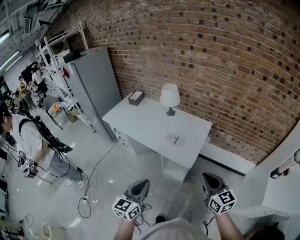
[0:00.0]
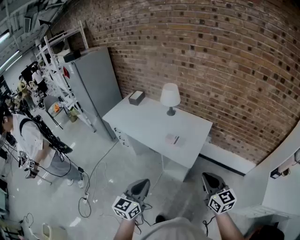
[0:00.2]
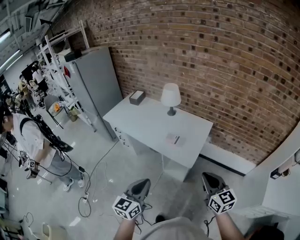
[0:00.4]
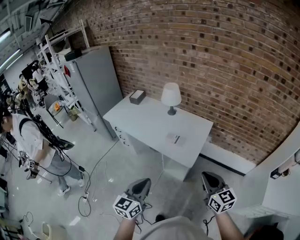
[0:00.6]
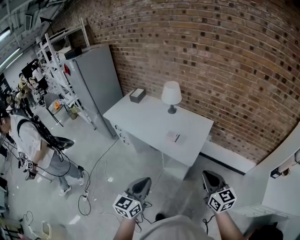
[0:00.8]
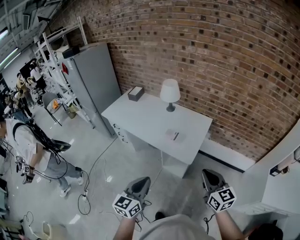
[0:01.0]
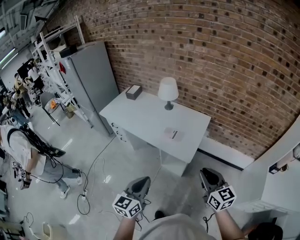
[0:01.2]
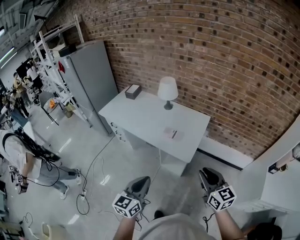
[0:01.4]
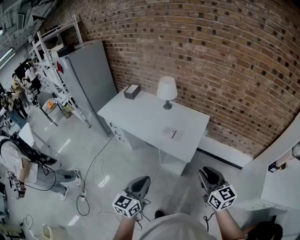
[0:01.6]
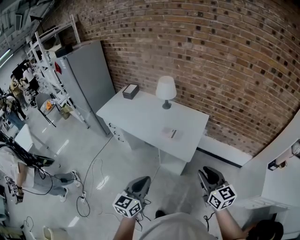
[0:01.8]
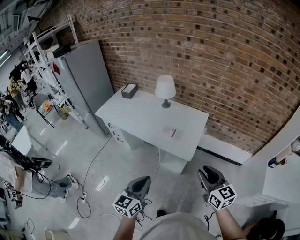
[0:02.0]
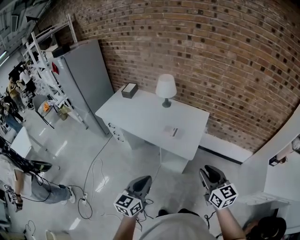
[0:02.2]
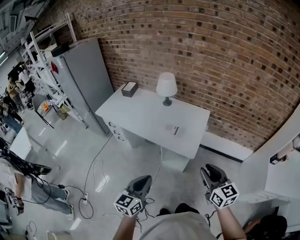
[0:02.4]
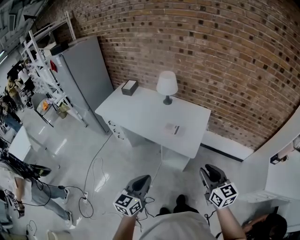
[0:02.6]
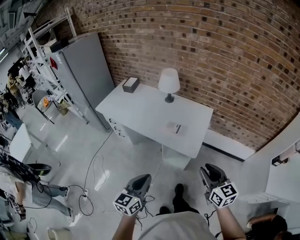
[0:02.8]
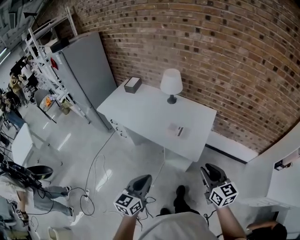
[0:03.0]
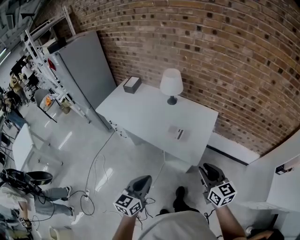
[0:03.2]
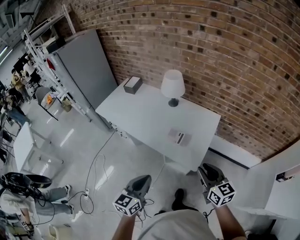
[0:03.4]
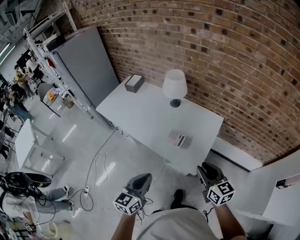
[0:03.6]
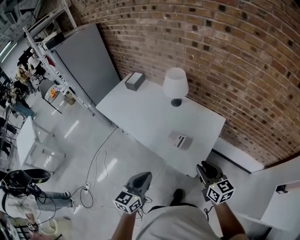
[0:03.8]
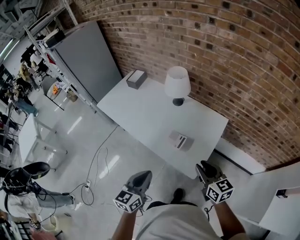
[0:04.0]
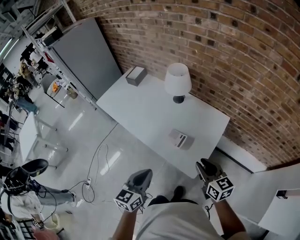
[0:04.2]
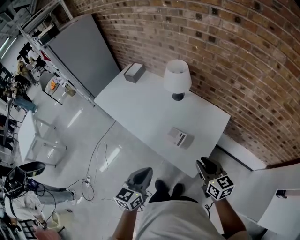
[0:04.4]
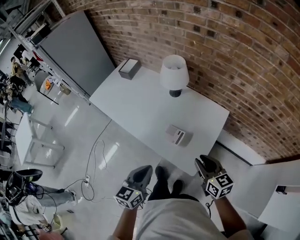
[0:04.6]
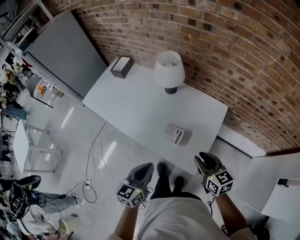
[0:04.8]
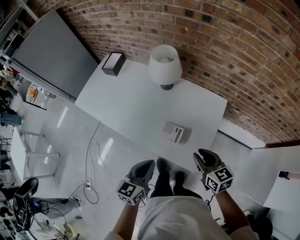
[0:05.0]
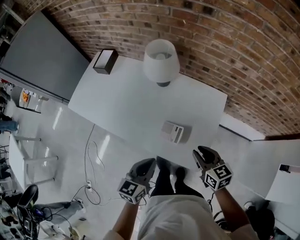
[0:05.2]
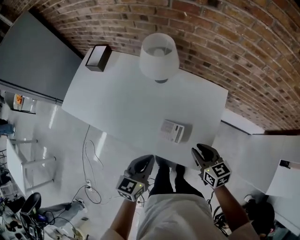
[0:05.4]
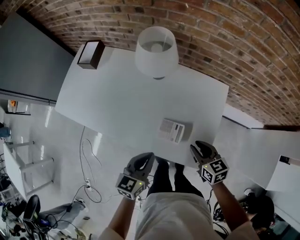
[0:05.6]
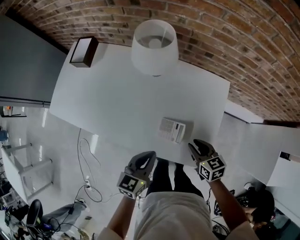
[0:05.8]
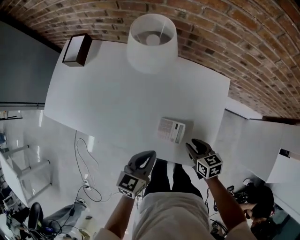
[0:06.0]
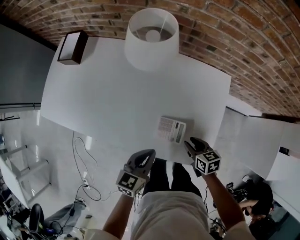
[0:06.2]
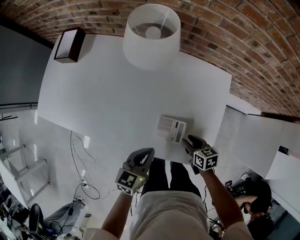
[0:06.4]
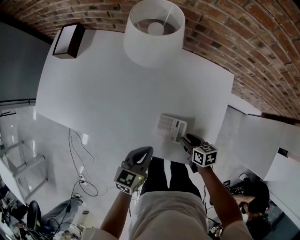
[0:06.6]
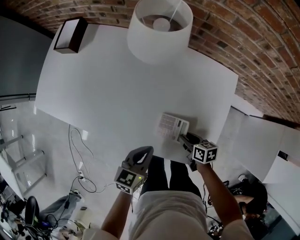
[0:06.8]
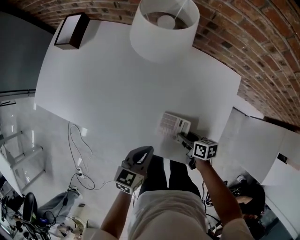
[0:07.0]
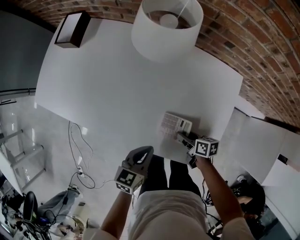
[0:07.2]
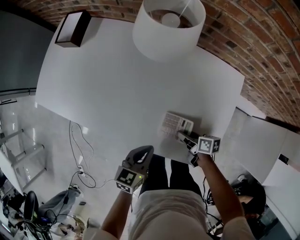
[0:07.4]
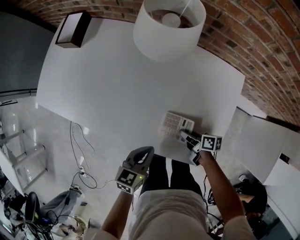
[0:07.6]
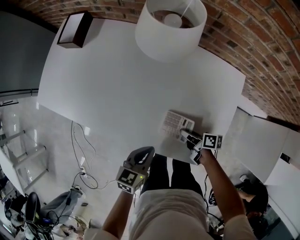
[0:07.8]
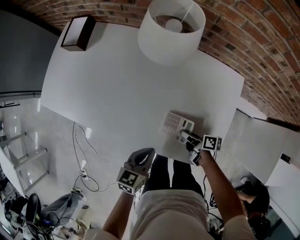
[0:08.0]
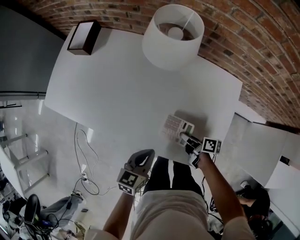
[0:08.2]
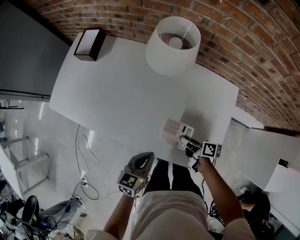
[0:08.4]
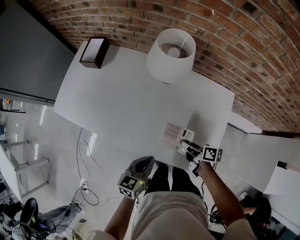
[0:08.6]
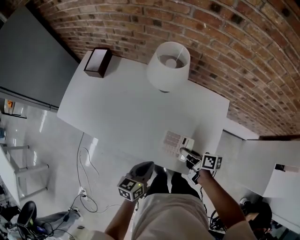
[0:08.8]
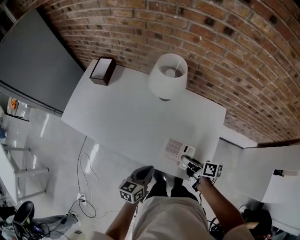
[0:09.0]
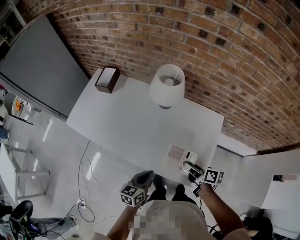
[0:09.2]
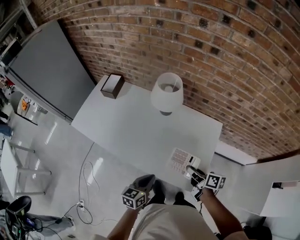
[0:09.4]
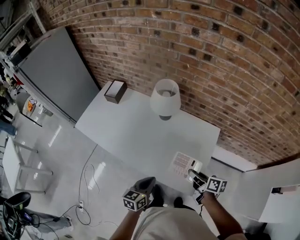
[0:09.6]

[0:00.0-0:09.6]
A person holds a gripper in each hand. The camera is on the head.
0:00.0 to 0:01.6: The right gripper opens up.
0:01.6 to 0:03.2: The right gripper is displaced forward and downward by roughly 15 cm. Meanwhile the left gripper travels forward by roughly 10 cm.
0:03.2 to 0:04.8: Both grippers move forward, about 25 cm.
0:04.8 to 0:06.4: The left gripper shifts approximately 25 cm downward and forward, and changes its angle by roughly 30 degrees. Meanwhile the right gripper goes approximately 30 cm downward, and rotates about 40 degrees.
0:06.4 to 0:08.0: The right gripper travels downward by about 5 cm, and rotates about 40 degrees.
0:08.0 to 0:09.6: The left gripper travels upward and backward by about 20 cm, while the right gripper shifts about 30 cm upward, and rotates approximately 20 degrees.

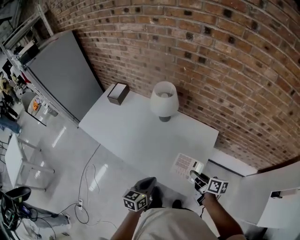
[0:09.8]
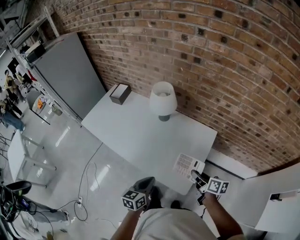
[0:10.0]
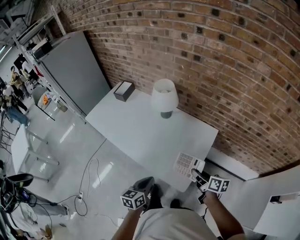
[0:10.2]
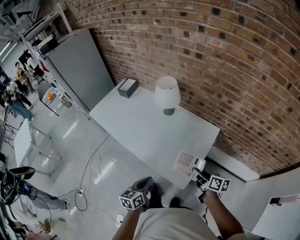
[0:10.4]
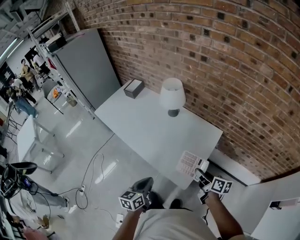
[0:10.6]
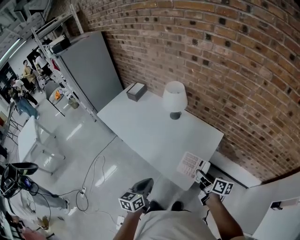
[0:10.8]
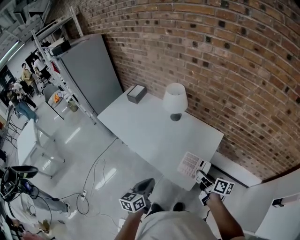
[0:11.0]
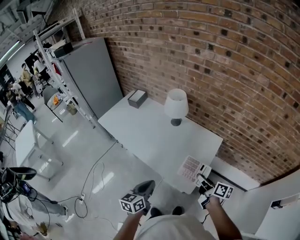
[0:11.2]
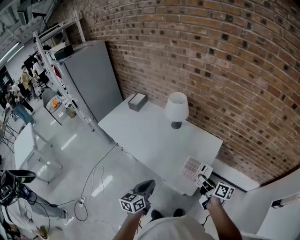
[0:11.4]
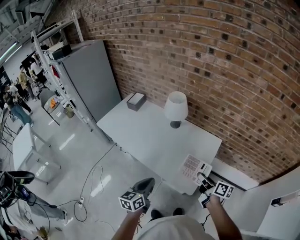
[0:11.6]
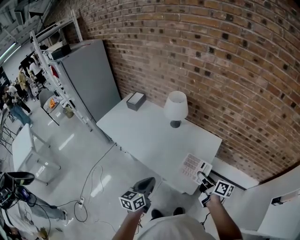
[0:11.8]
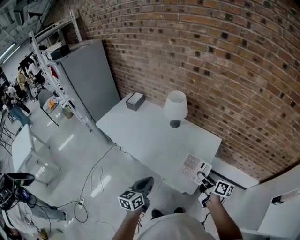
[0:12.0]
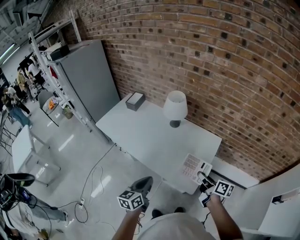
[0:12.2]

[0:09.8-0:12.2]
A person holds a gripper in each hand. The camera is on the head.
0:09.8 to 0:11.0: The right gripper goes roughly 10 cm backward; the left gripper shifts approximately 15 cm backward and upward.
0:11.0 to 0:12.2: The left gripper moves to the left, approximately 5 cm.

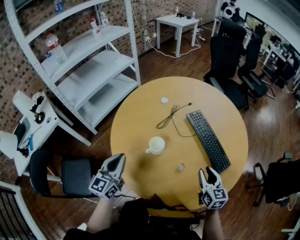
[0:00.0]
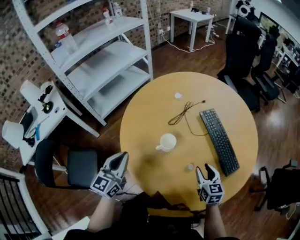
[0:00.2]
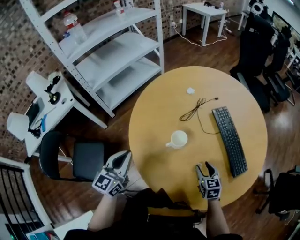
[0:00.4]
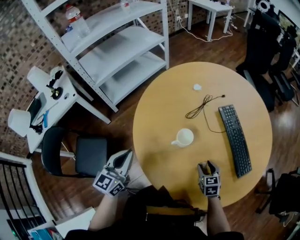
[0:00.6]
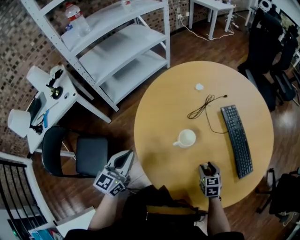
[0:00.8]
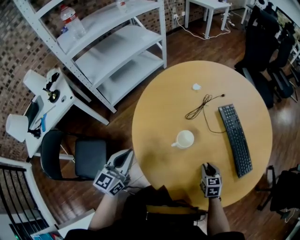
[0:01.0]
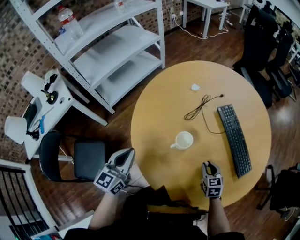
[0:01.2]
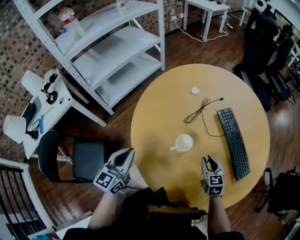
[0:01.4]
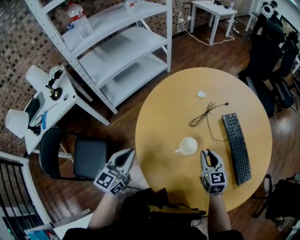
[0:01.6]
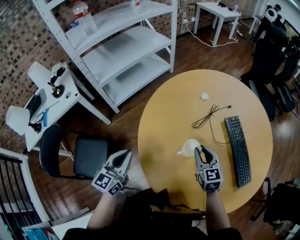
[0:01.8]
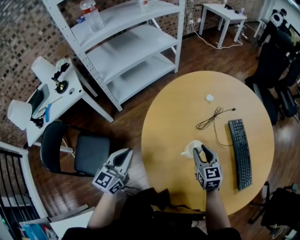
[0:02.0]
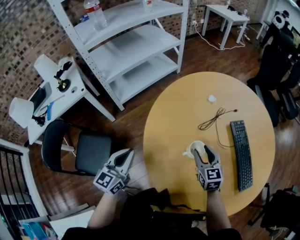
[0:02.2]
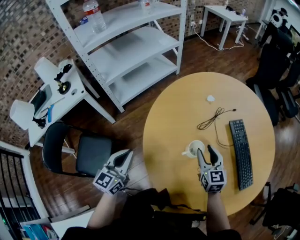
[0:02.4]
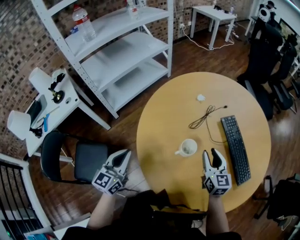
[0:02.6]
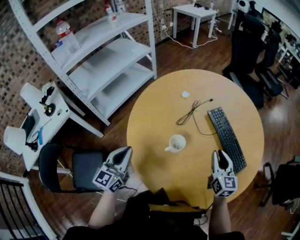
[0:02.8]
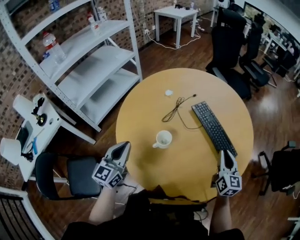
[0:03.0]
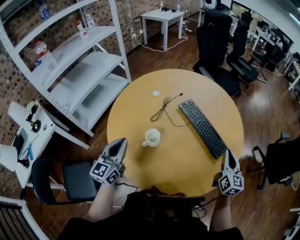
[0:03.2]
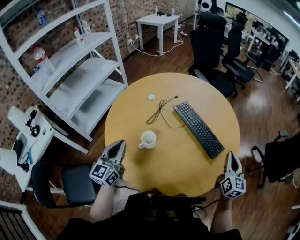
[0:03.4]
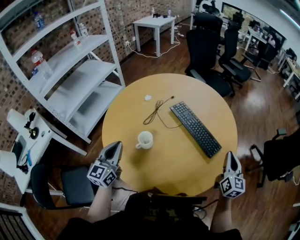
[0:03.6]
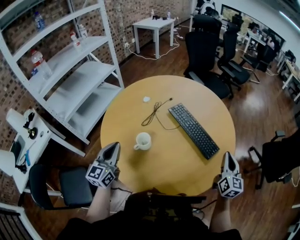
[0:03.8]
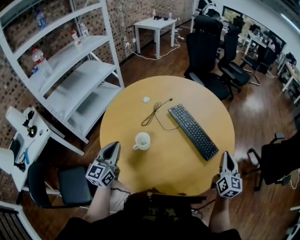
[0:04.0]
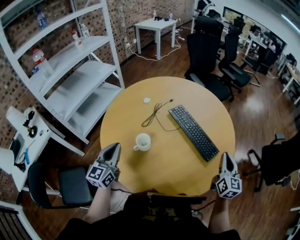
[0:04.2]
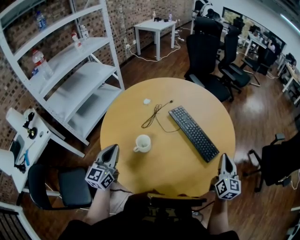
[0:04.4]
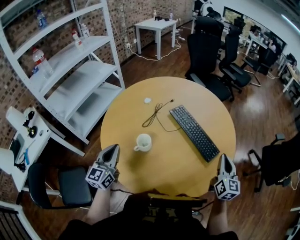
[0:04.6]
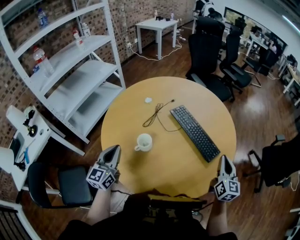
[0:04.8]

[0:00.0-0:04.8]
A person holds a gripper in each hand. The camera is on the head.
0:00.0 to 0:01.6: The left gripper is displaced to the left by some 10 cm; the right gripper is displaced to the left and forward by about 20 cm, and moves roughly 15 cm downward and comes back.
0:01.6 to 0:03.2: The left gripper moves about 15 cm, while the right gripper ends up roughly 30 cm from where it was, turns by approximately 40 degrees, and opens and closes again.
0:03.2 to 0:04.8: There are only small adjustments of the grippers.

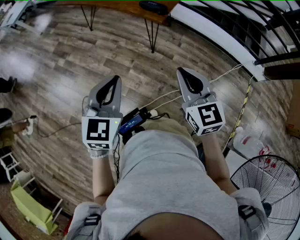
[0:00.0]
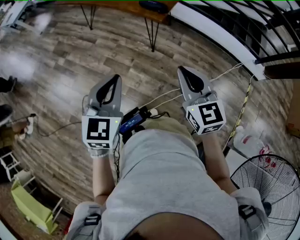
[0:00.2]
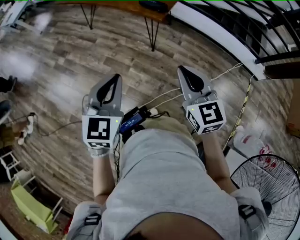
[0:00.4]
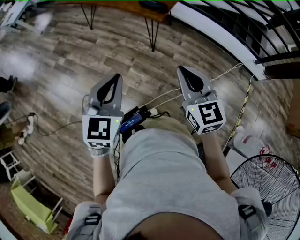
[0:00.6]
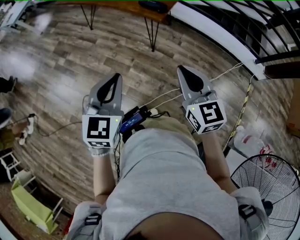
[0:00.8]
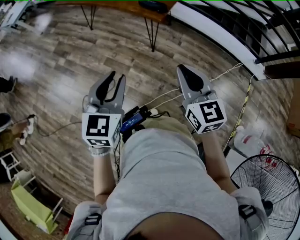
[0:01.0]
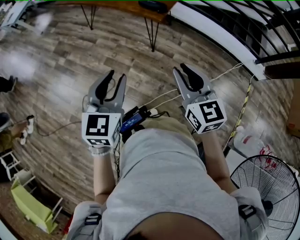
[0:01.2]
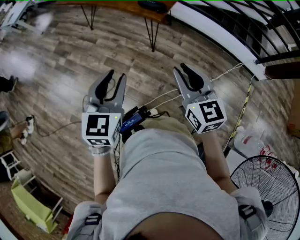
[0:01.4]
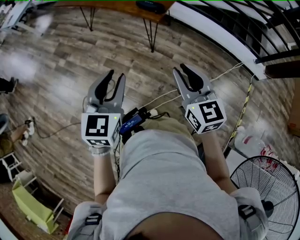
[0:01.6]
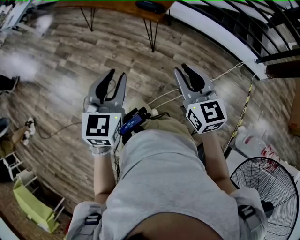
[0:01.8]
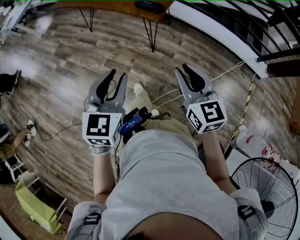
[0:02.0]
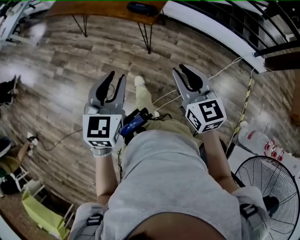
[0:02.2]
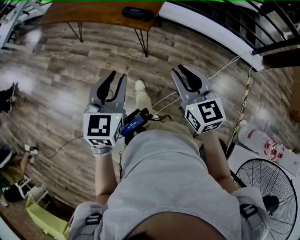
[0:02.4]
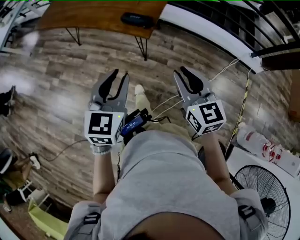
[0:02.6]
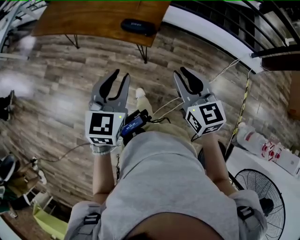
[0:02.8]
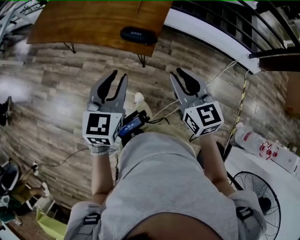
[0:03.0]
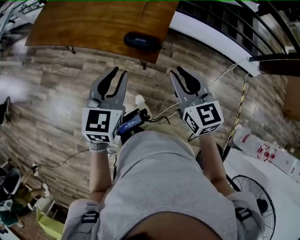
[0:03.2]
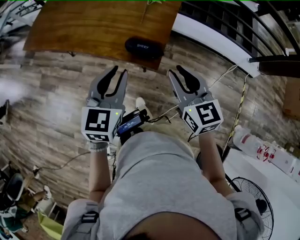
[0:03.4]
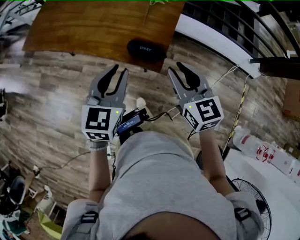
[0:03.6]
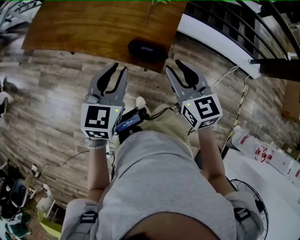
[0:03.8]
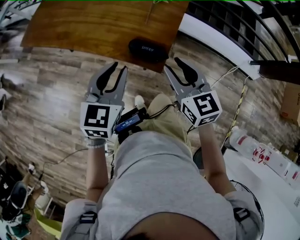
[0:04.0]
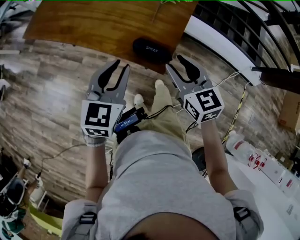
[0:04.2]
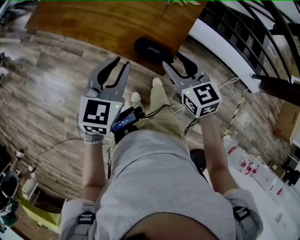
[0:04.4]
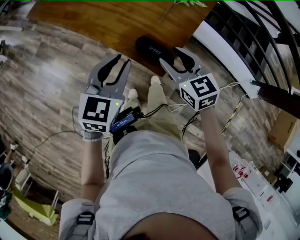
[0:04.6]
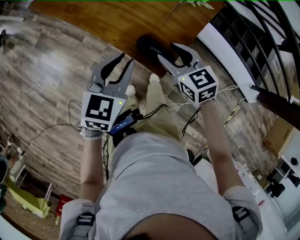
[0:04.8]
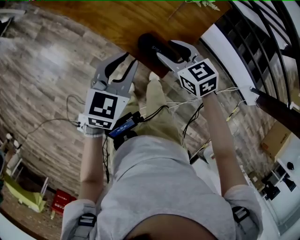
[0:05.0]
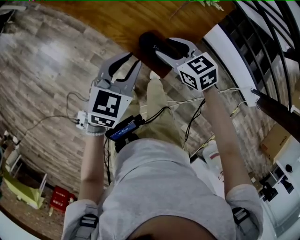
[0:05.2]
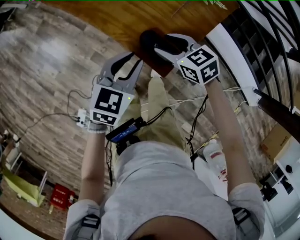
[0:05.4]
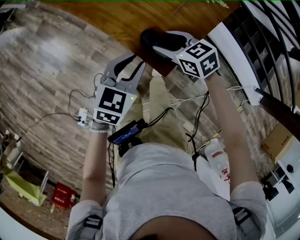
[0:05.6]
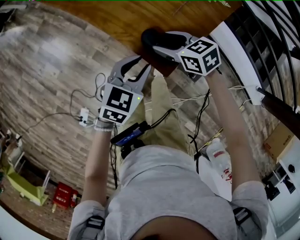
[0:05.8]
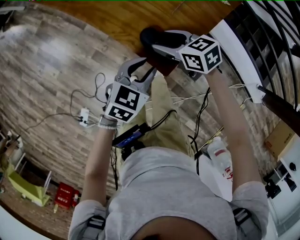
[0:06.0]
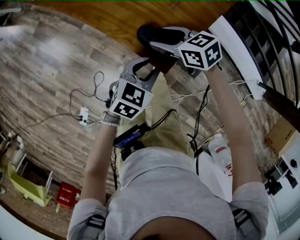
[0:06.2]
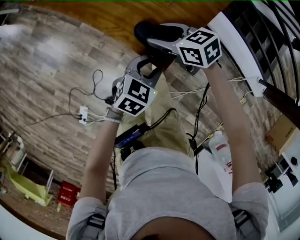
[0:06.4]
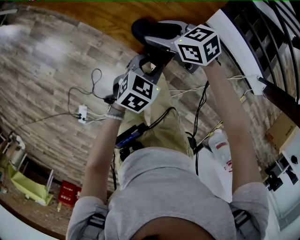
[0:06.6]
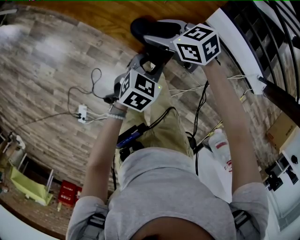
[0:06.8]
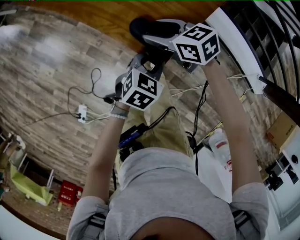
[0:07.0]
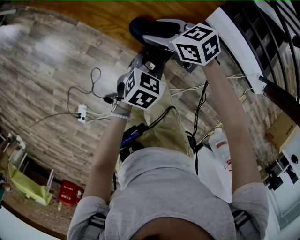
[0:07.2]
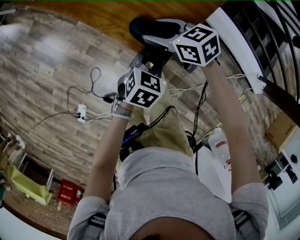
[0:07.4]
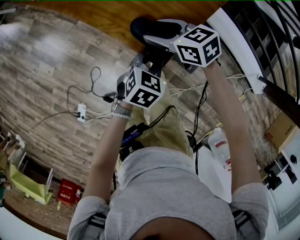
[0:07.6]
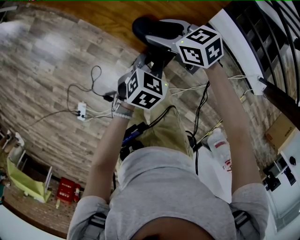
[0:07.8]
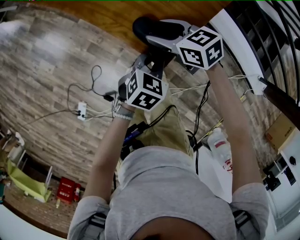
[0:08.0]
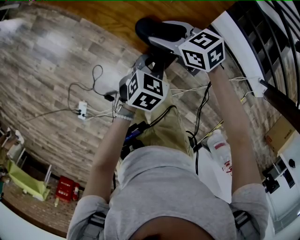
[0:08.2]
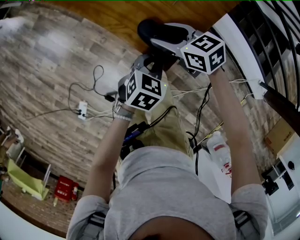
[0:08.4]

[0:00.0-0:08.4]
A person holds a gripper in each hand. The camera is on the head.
0:00.0 to 0:01.4: The left gripper opens its fingers; the right gripper opens.
0:01.4 to 0:02.8: Both grippers travel together forward, roughly 20 cm.
0:02.8 to 0:04.2: Both grippers travel together forward, approximately 20 cm.
0:04.2 to 0:05.6: The left gripper is displaced downward and to the right by about 10 cm, while the right gripper is displaced downward and forward by about 15 cm, and swivels about 40 degrees.
0:05.6 to 0:07.0: The left gripper is displaced downward and to the right by roughly 10 cm.
0:07.0 to 0:08.4: The left gripper closes.
